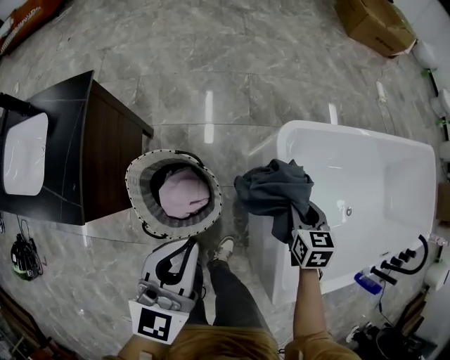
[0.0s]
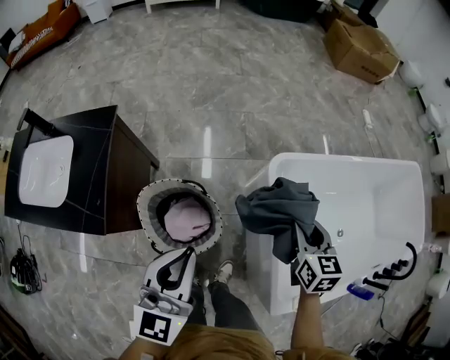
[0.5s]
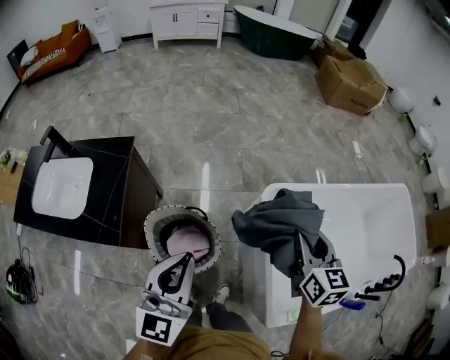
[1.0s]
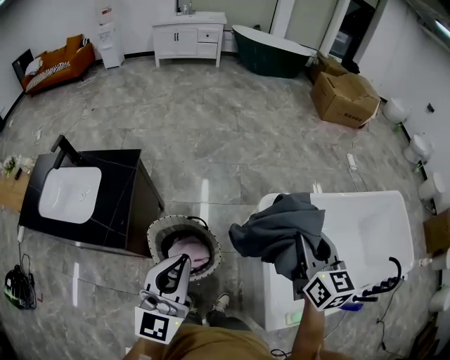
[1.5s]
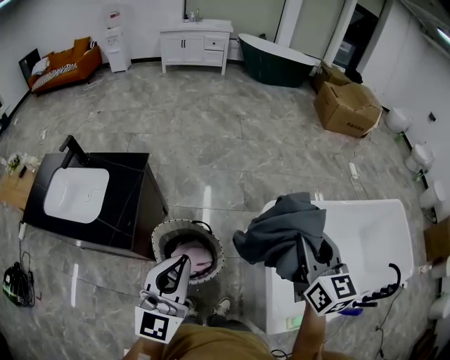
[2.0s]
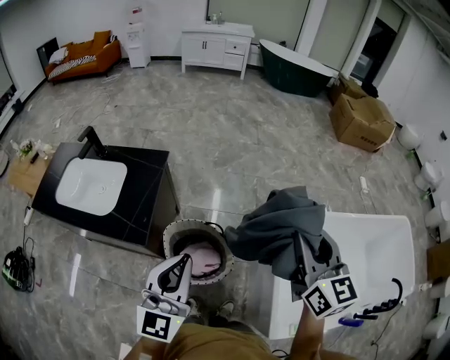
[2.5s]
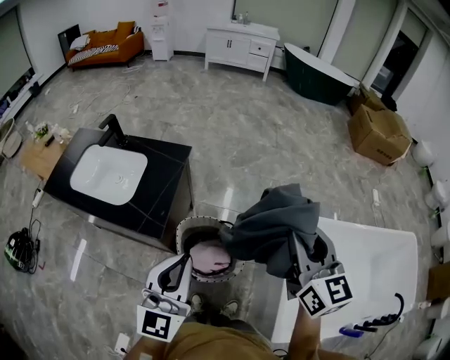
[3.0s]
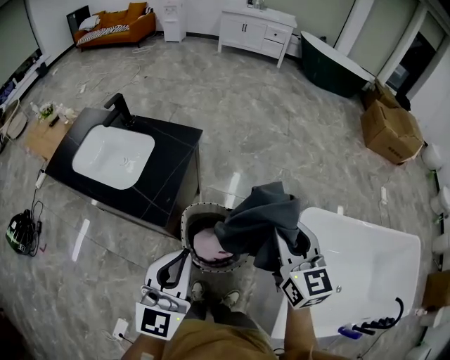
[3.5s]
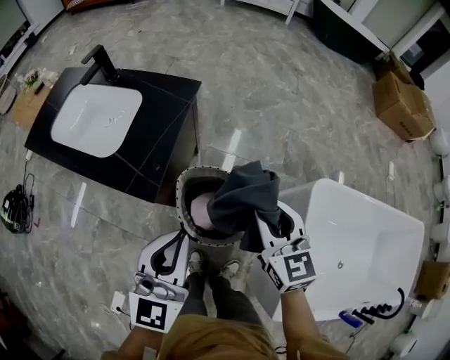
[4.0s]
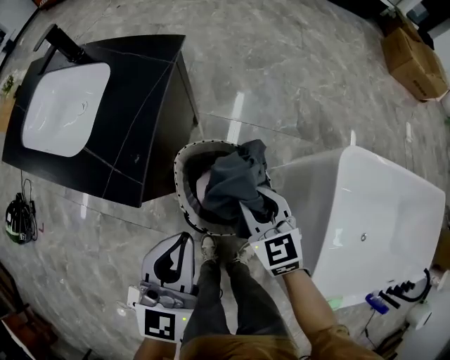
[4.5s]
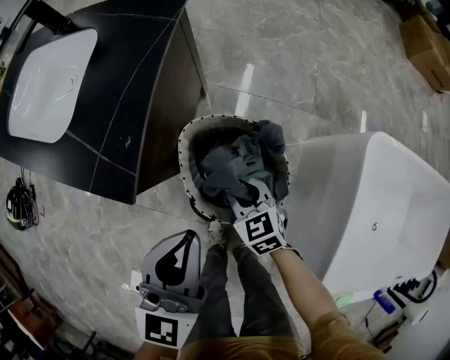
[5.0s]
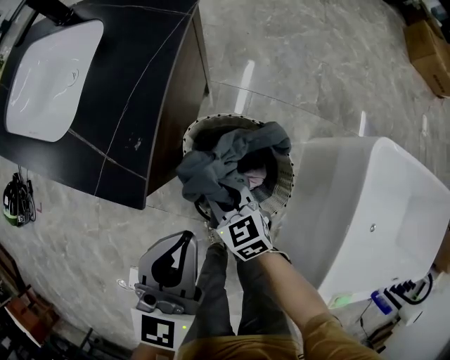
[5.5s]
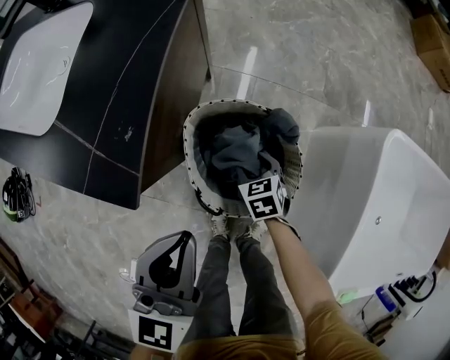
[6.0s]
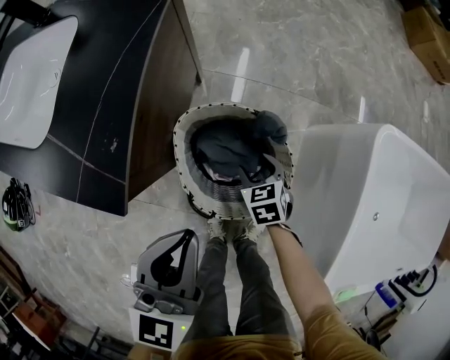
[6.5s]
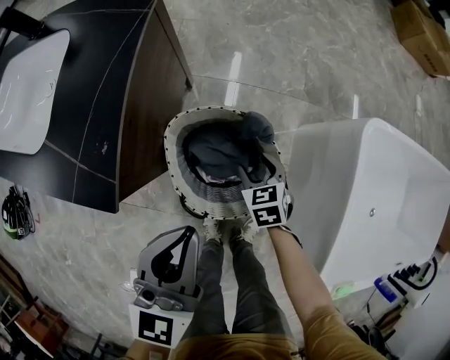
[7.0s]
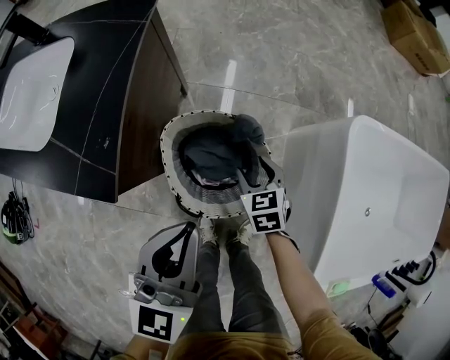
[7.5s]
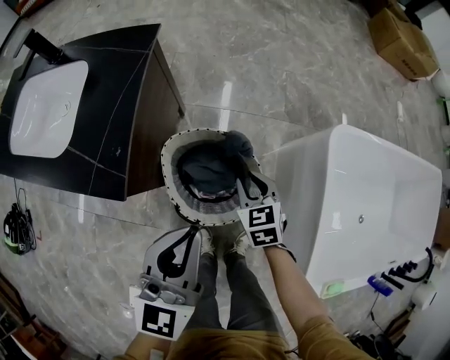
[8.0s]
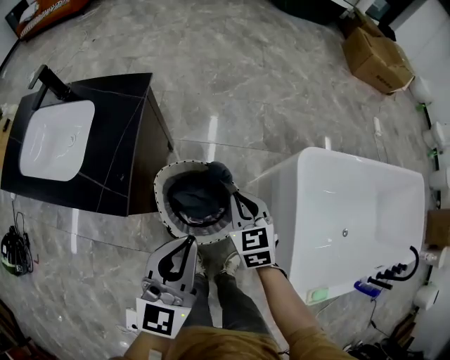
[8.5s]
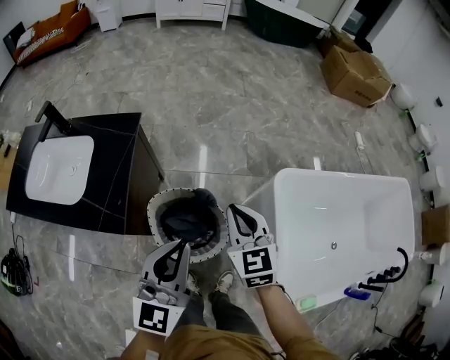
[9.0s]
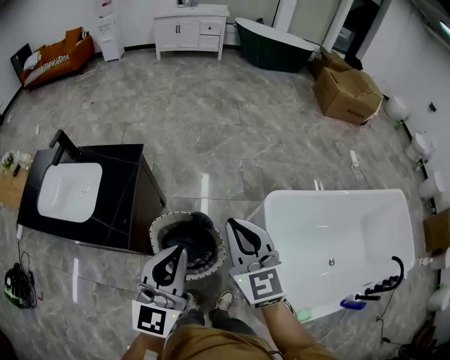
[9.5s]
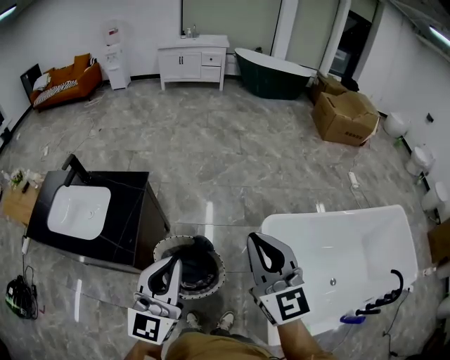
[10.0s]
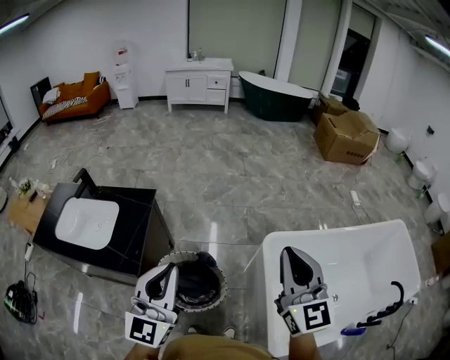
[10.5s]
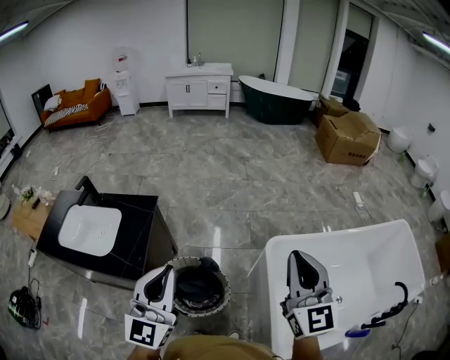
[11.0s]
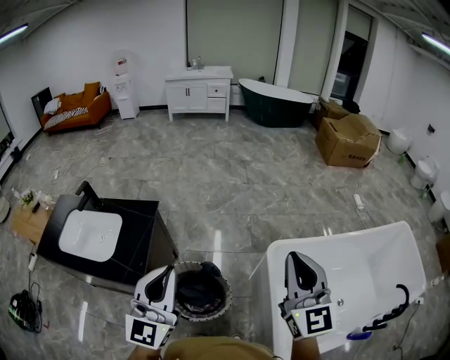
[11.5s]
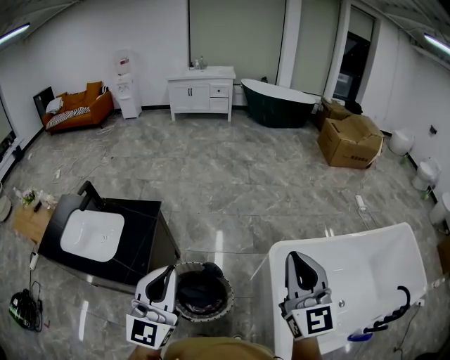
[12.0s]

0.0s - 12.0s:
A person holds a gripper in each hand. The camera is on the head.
0.0s - 2.0s: The left gripper shifts about 25 cm upward and backward. The right gripper travels upward by roughly 40 cm, and angles its fingers upward, by roughly 40 degrees.
2.0s - 4.0s: The right gripper travels to the left and downward by some 30 cm, and turns by approximately 30 degrees, while the left gripper is displaced to the left and downward by approximately 15 cm.
4.0s - 6.0s: The left gripper goes about 20 cm downward; the right gripper is displaced downward by roughly 50 cm, and points its fingers some 40 degrees further downward.
6.0s - 8.0s: The left gripper is displaced upward and to the right by some 15 cm; the right gripper heads upward and to the right, covering approximately 20 cm.
8.0s - 10.0s: The left gripper goes approximately 30 cm upward, and changes its angle by about 20 degrees. Meanwhile the right gripper shifts about 50 cm upward, and tips its fingers upward by some 50 degrees.
10.0s - 12.0s: The right gripper heads to the right, covering roughly 10 cm.

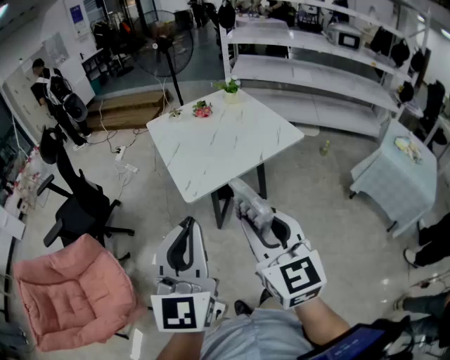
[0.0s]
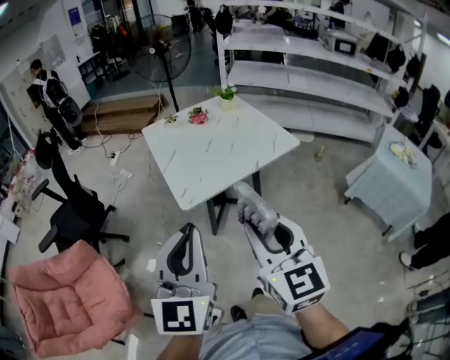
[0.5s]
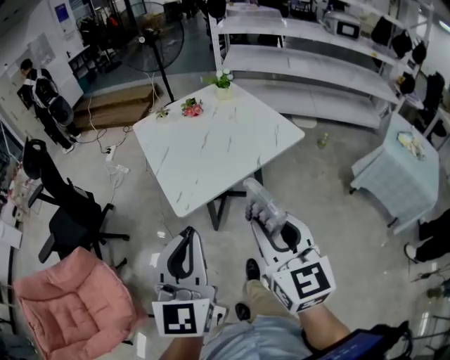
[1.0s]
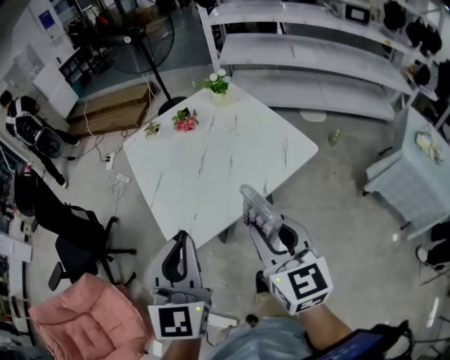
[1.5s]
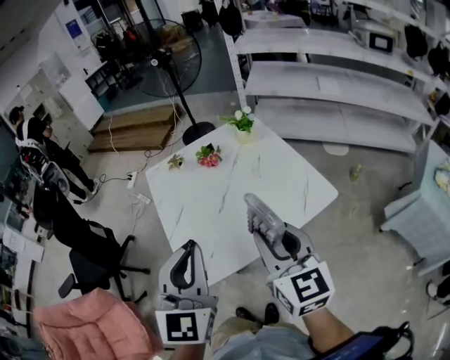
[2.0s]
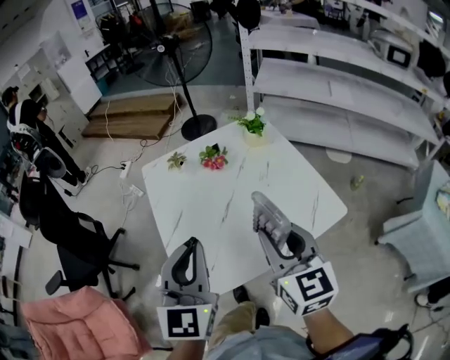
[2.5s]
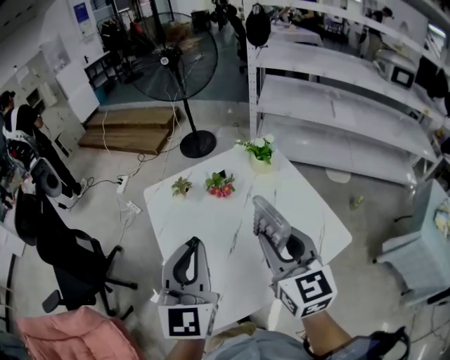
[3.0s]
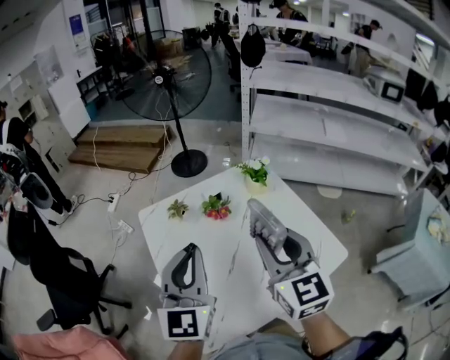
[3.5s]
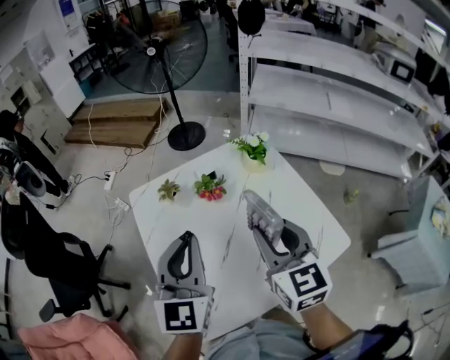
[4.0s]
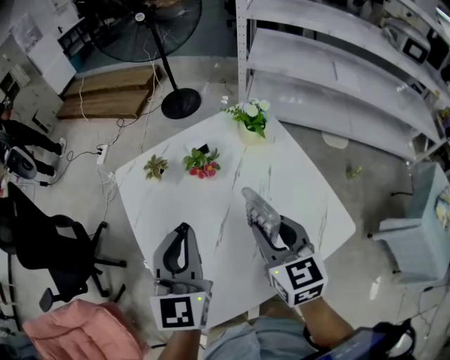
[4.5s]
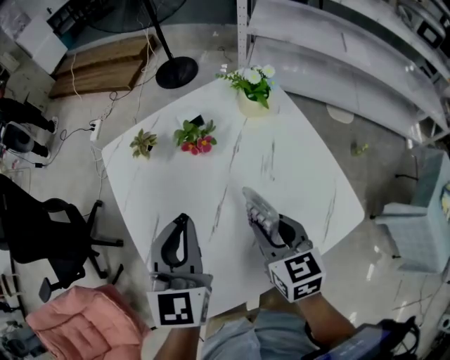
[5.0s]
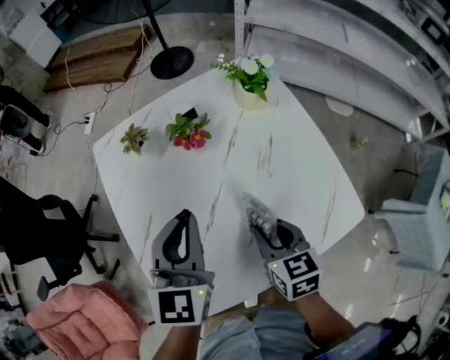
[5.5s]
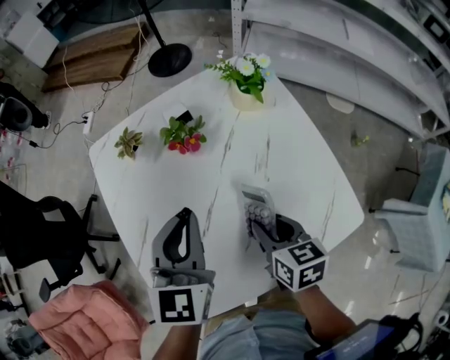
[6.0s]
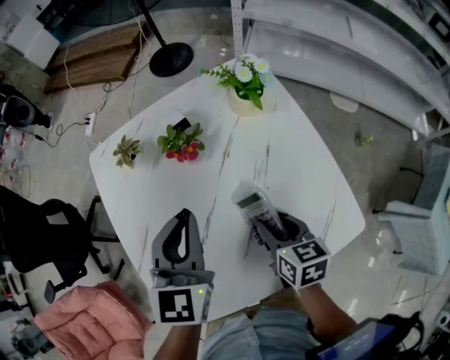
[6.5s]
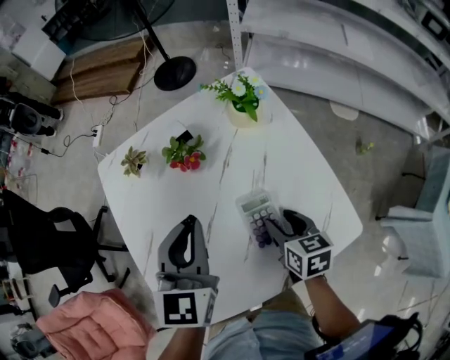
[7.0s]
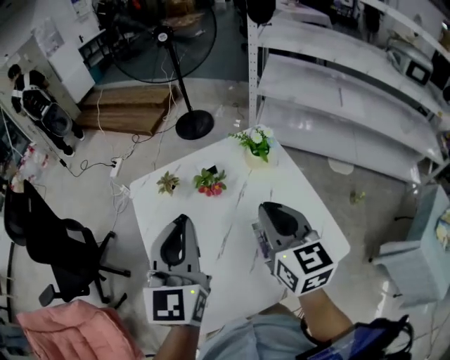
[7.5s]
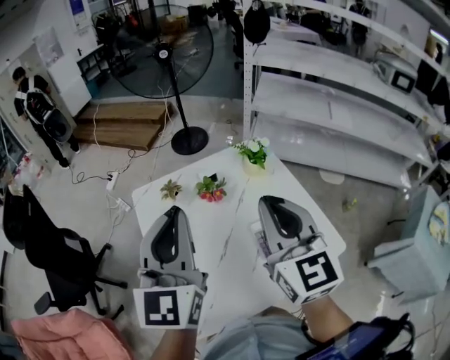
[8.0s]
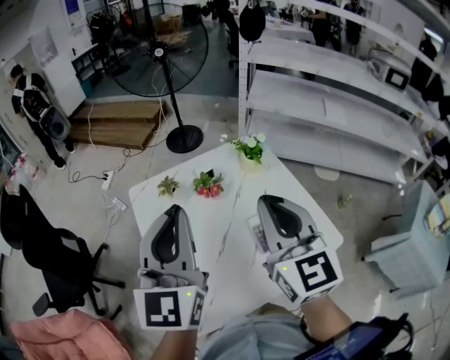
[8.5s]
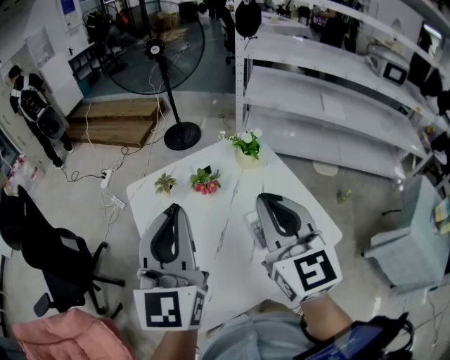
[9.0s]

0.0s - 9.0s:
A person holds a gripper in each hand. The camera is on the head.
0.0s - 2.0s: The grippers both shift forward by about 30 cm.
2.0s - 4.5s: The right gripper travels forward and downward by roughly 25 cm, while the left gripper is displaced forward by about 25 cm.
4.5s - 7.0s: The left gripper heads to the right and downward, covering some 10 cm, while the right gripper moves downward and to the right, some 20 cm, turns by approximately 30 degrees, and opens up.
7.0s - 9.0s: The left gripper is displaced upward and to the left by roughly 20 cm, and rotates roughly 30 degrees; the right gripper travels upward by roughly 35 cm, tips its fingers upward by roughly 40 degrees, and closes up.

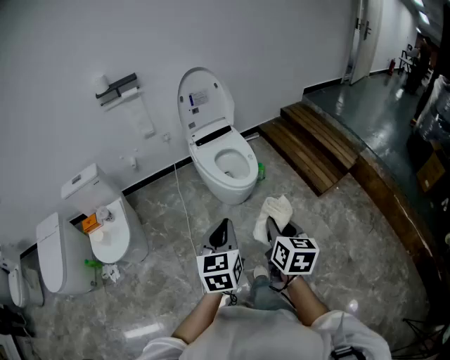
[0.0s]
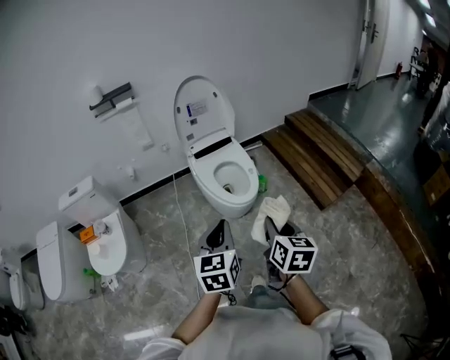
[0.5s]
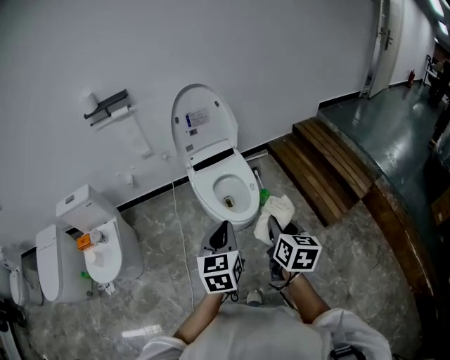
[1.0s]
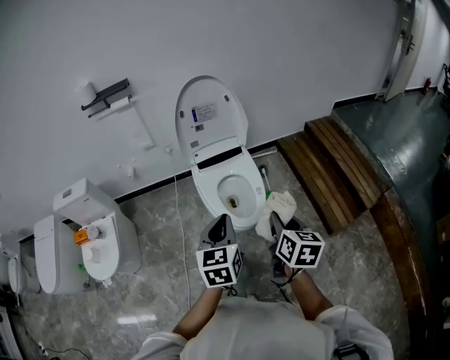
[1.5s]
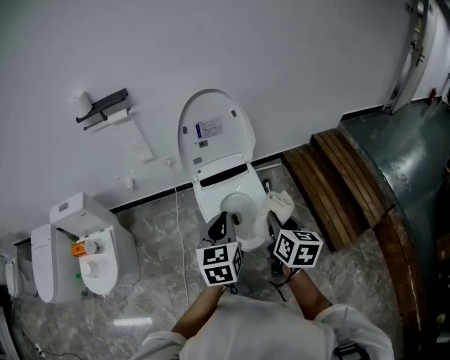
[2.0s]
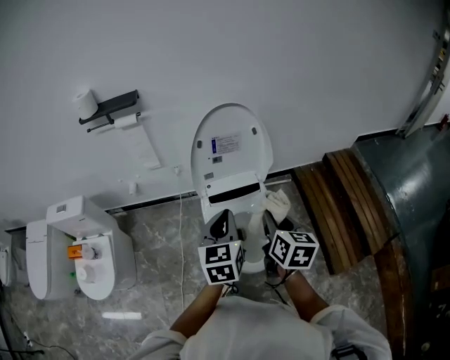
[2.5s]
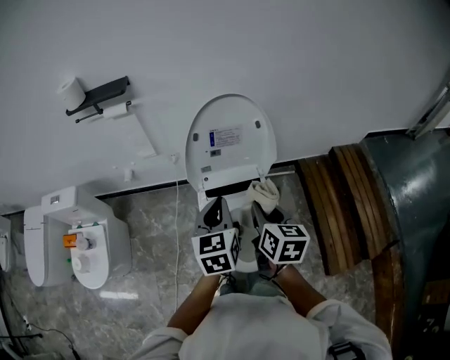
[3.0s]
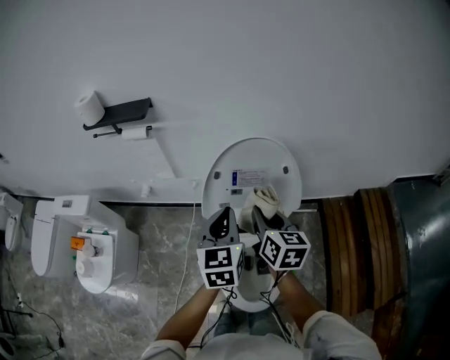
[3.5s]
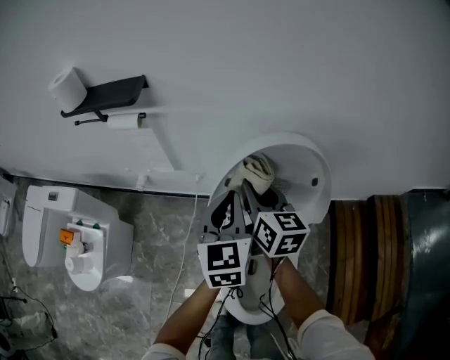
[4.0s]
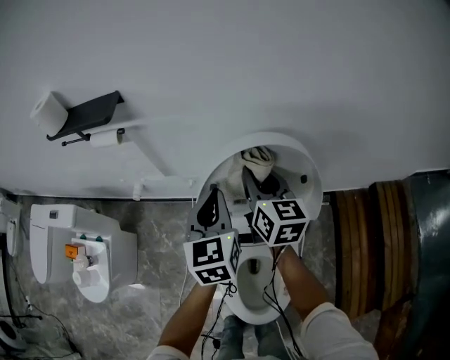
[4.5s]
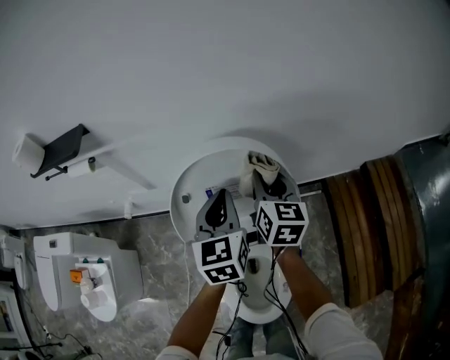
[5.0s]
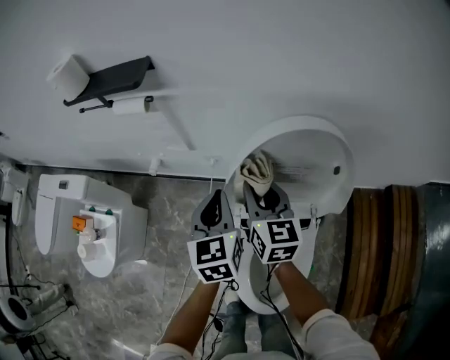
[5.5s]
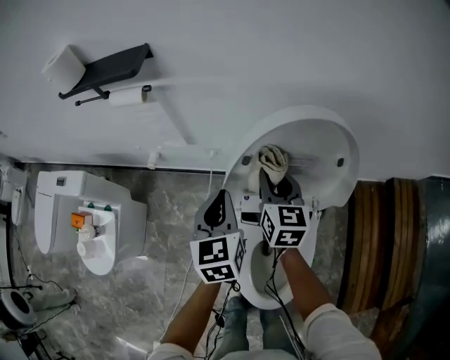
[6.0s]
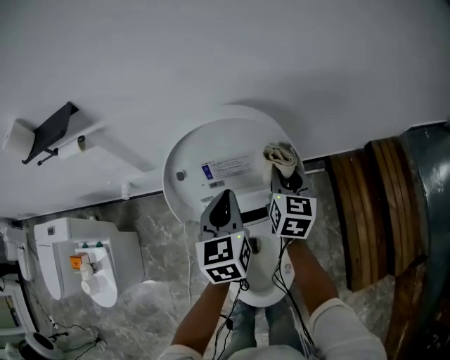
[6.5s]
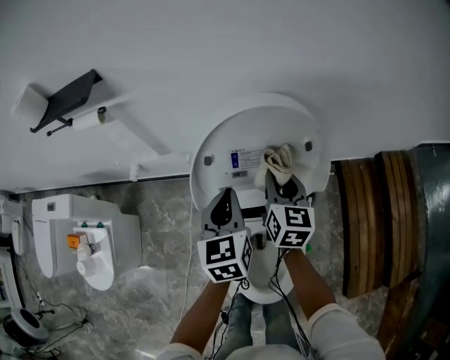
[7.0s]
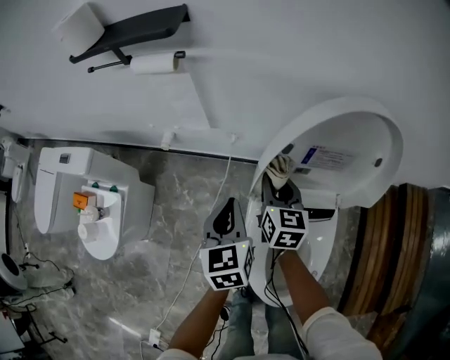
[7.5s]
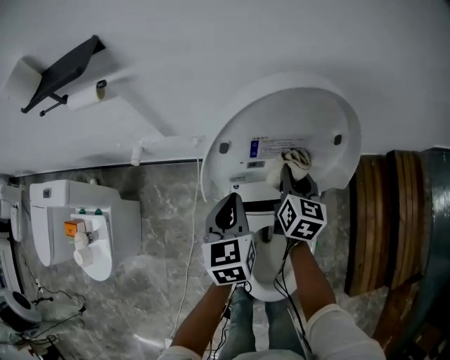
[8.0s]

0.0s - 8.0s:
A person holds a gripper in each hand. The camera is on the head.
0.0s - 2.0s: The two grippers travel together, forward, roughly 40 cm.
2.0s - 4.0s: The pair of grippers is taken forward, some 50 cm. The right gripper turns by approximately 30 degrees. Meanwhile the left gripper changes its angle by approximately 20 degrees.
4.0s - 6.0s: The right gripper moves left and right over approximately 20 cm, changing direction 2 times. Meanwhile the left gripper goes approximately 10 cm downward and to the left.
6.0s - 8.0s: The right gripper swings left and right, about 30 cm each way, with 2 reversals. The left gripper swings left and right, about 25 cm each way, with 2 reversals.
